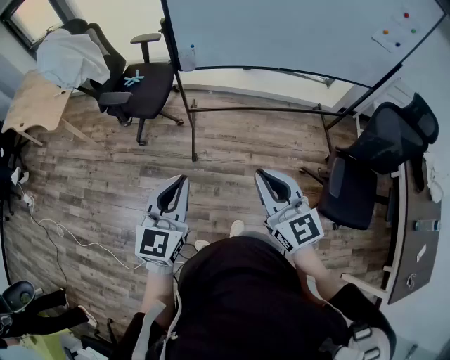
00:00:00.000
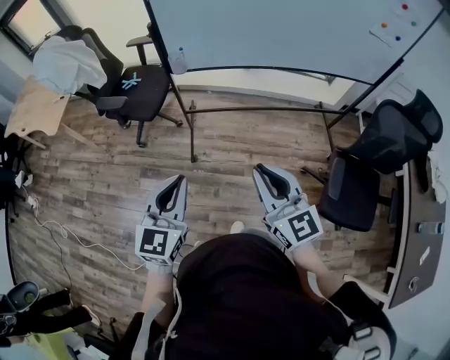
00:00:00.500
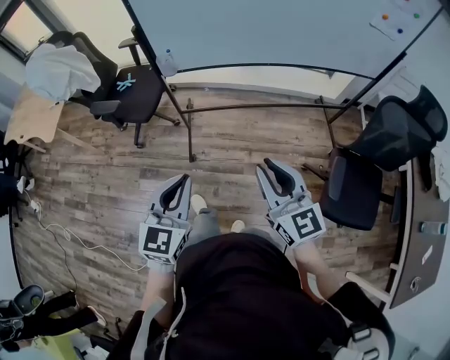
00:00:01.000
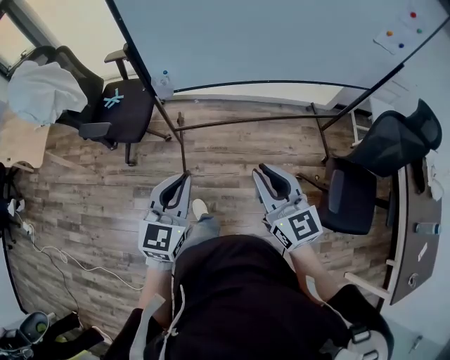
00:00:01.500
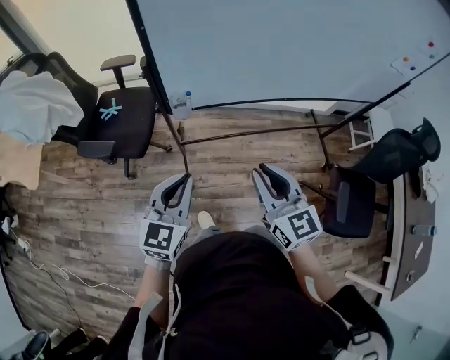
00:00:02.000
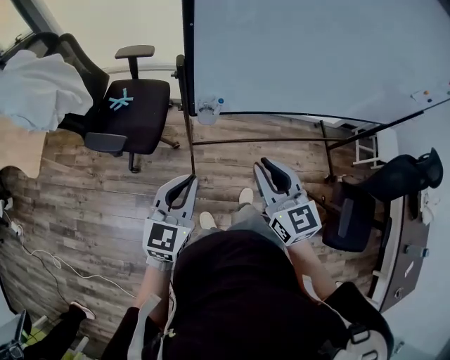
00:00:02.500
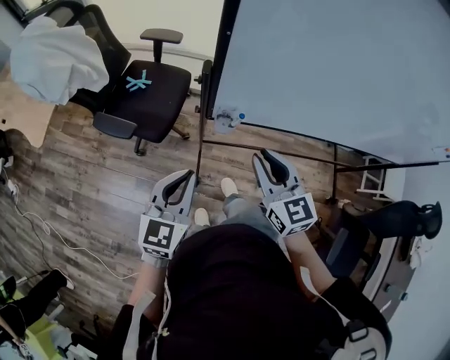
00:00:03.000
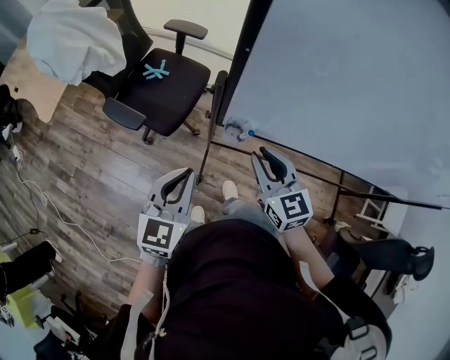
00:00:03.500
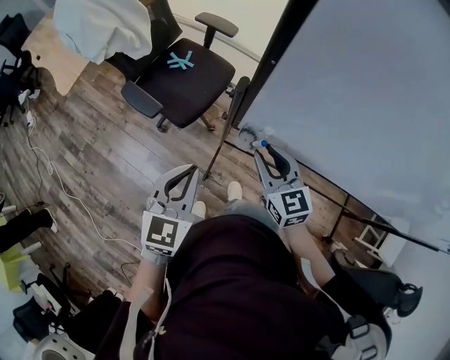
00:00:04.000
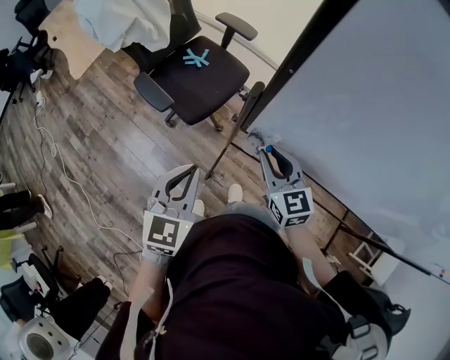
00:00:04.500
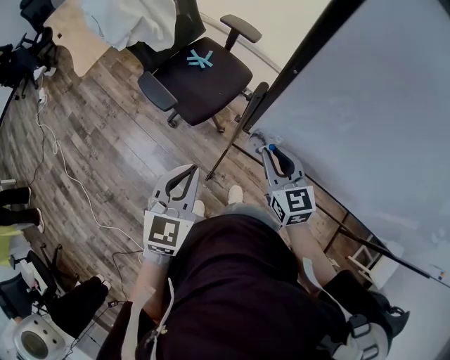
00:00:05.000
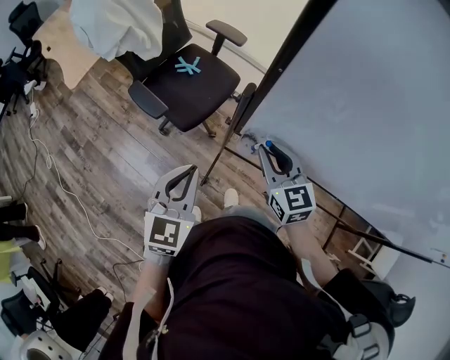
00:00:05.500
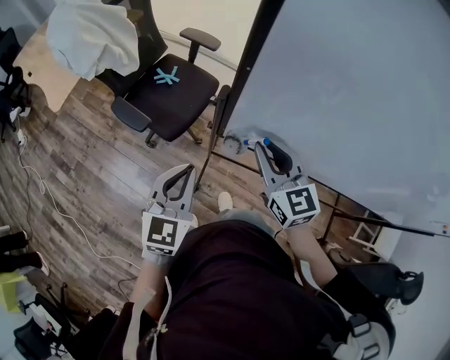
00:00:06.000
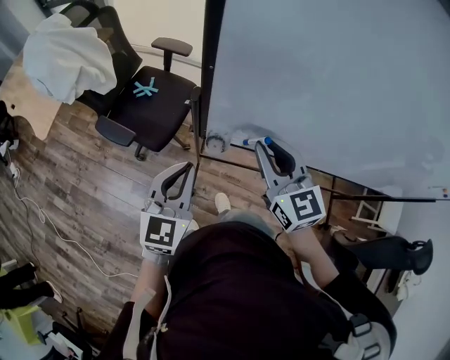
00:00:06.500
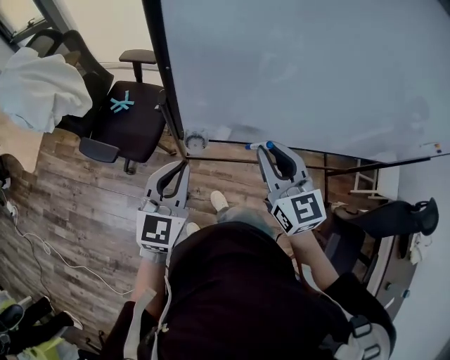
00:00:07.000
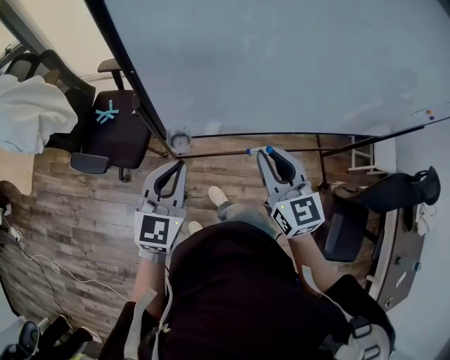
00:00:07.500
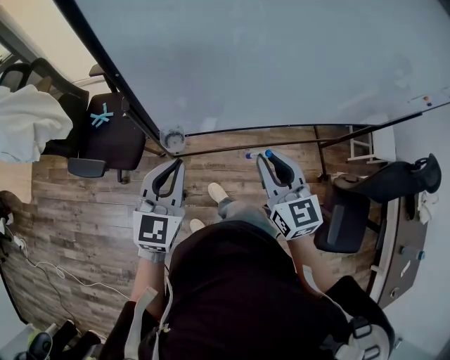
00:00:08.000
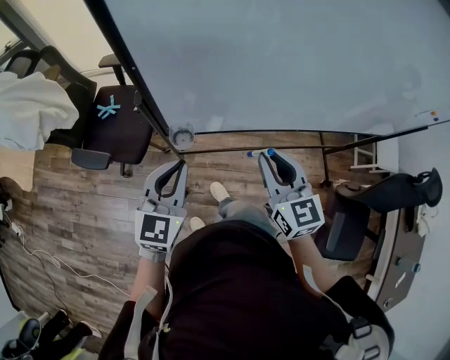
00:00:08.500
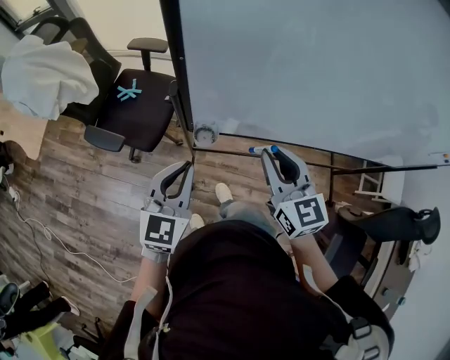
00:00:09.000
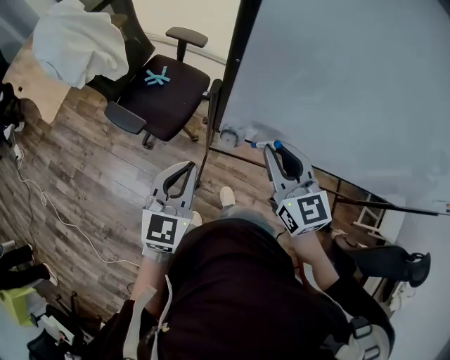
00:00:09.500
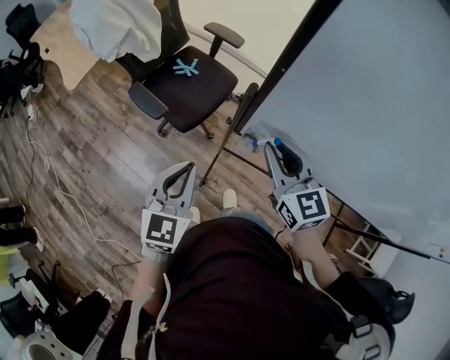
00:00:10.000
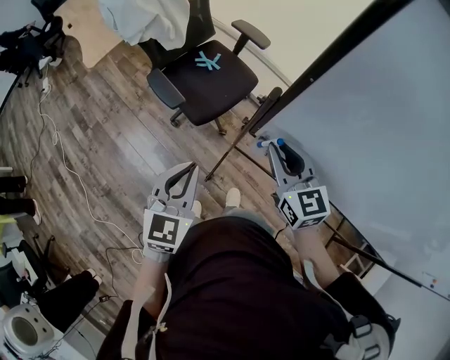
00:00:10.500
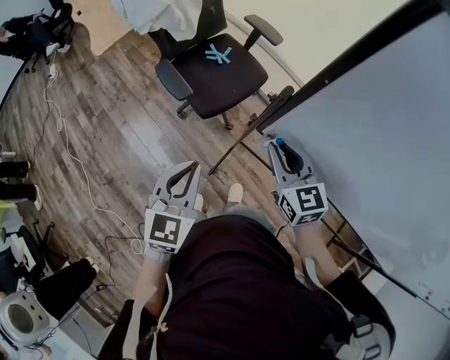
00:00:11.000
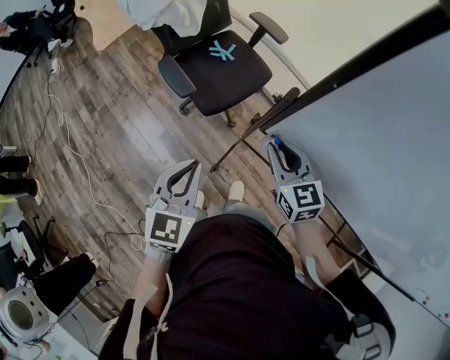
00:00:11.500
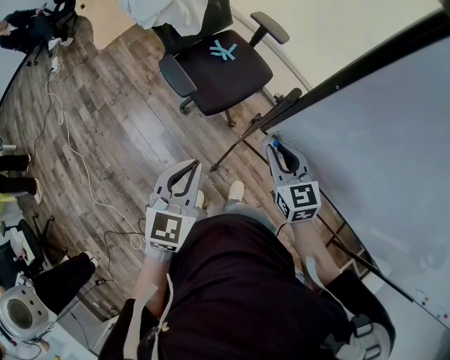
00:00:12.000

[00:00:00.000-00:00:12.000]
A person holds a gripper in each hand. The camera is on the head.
00:00:00.000 to 00:00:02.000: Both grippers travel together forward, about 30 cm.
00:00:02.000 to 00:00:04.000: The left gripper ends up roughly 15 cm from where it was, and turns by about 30 degrees. The right gripper ends up roughly 30 cm from where it was, and changes its angle by roughly 30 degrees.
00:00:04.000 to 00:00:06.000: The right gripper travels upward by approximately 10 cm.
00:00:06.000 to 00:00:08.000: The right gripper shifts by approximately 20 cm, and rotates approximately 30 degrees; the left gripper ends up some 10 cm from where it was, and swivels about 30 degrees.
00:00:08.000 to 00:00:10.000: The right gripper ends up roughly 20 cm from where it was, and rotates some 40 degrees; the left gripper ends up some 15 cm from where it was, and turns by some 30 degrees.
00:00:10.000 to 00:00:12.000: The right gripper goes some 10 cm downward.

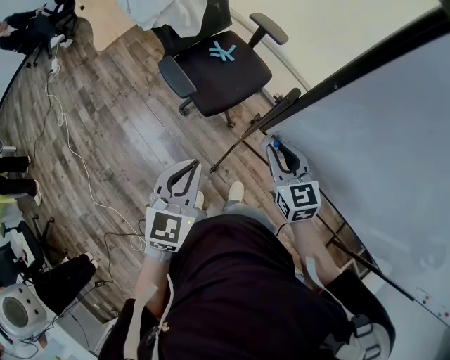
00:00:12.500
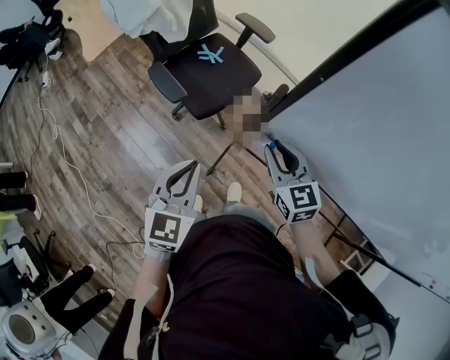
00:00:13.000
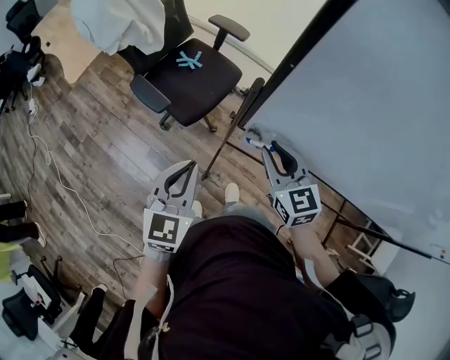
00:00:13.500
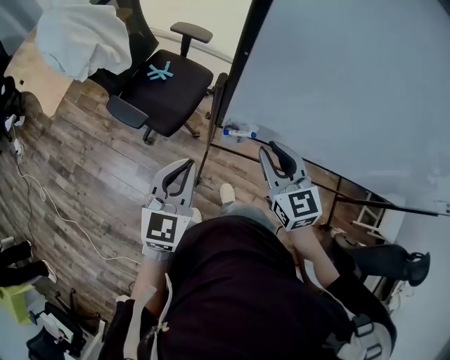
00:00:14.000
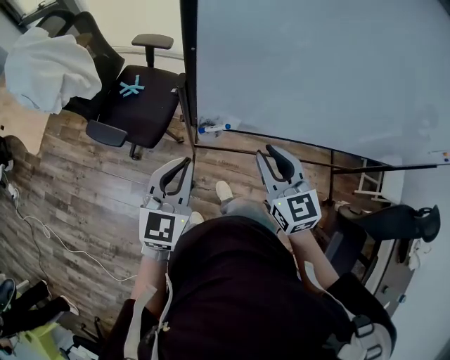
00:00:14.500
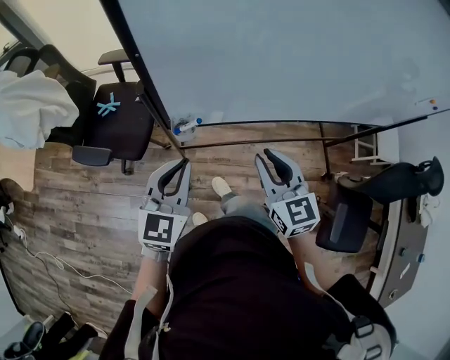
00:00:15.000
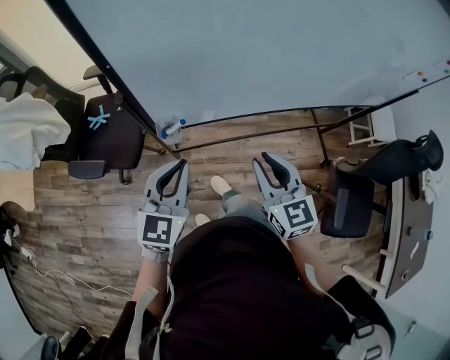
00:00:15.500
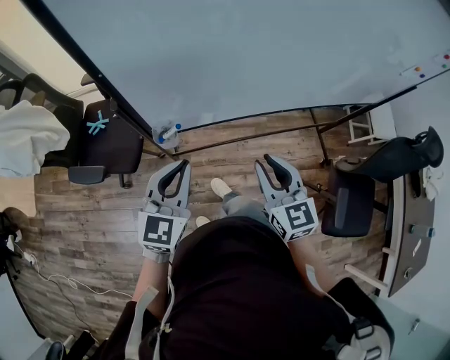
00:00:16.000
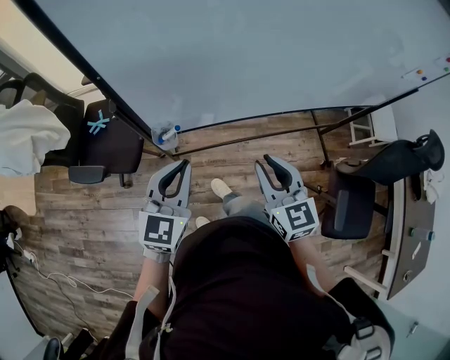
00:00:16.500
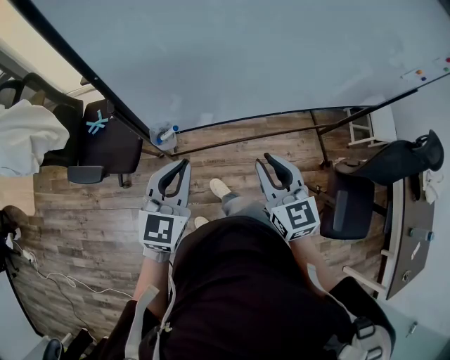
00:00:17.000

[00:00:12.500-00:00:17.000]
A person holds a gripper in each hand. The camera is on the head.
00:00:12.500 to 00:00:14.500: The right gripper changes place by approximately 15 cm, and turns by approximately 30 degrees; the left gripper moves roughly 10 cm, and rotates some 30 degrees.
00:00:14.500 to 00:00:17.000: The right gripper goes about 15 cm to the right and backward; the left gripper shifts roughly 10 cm to the right.

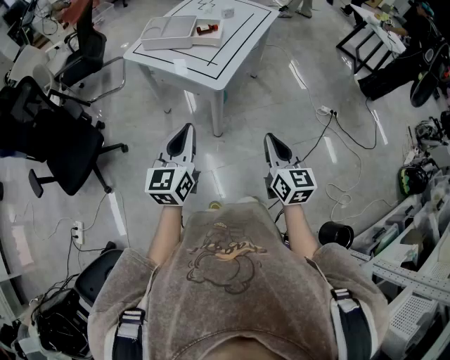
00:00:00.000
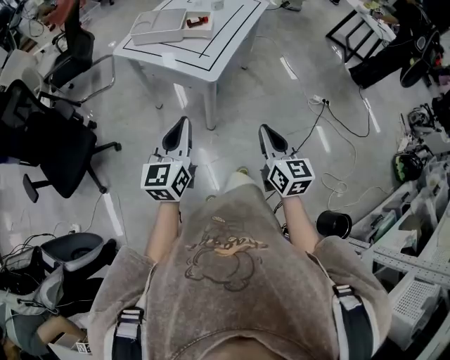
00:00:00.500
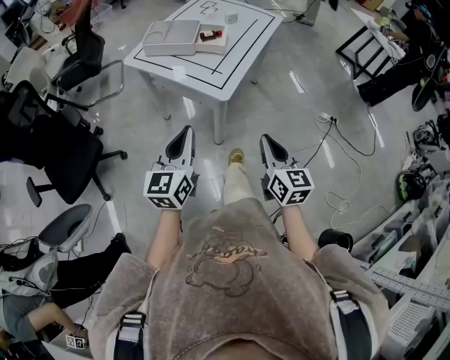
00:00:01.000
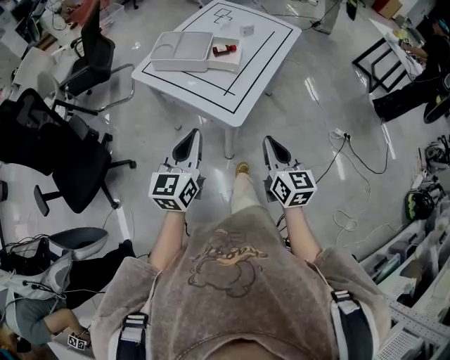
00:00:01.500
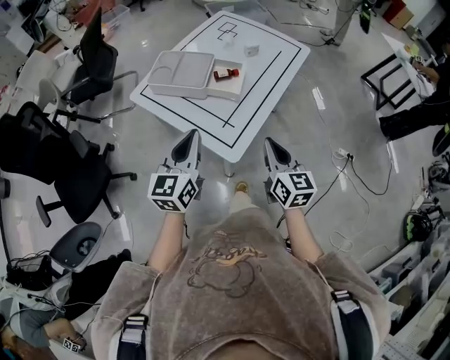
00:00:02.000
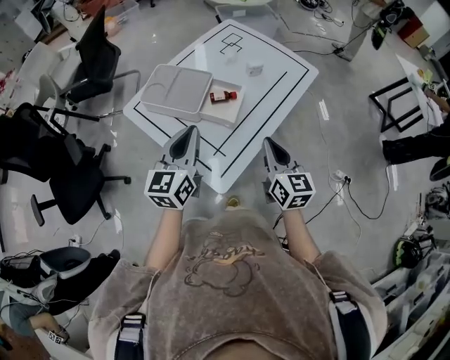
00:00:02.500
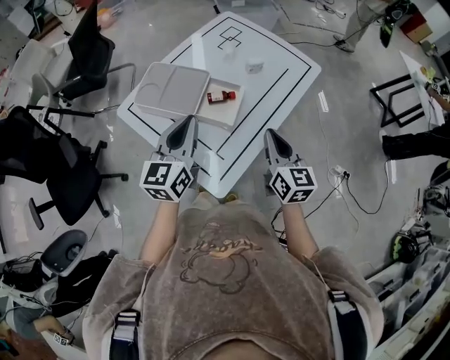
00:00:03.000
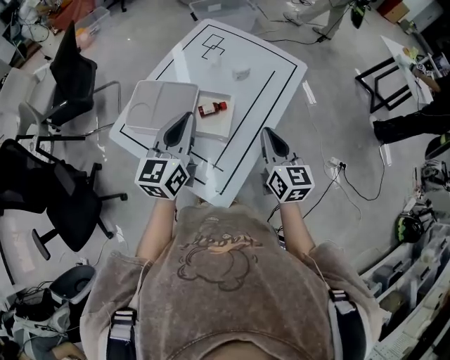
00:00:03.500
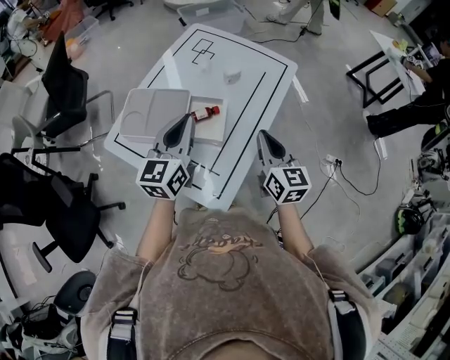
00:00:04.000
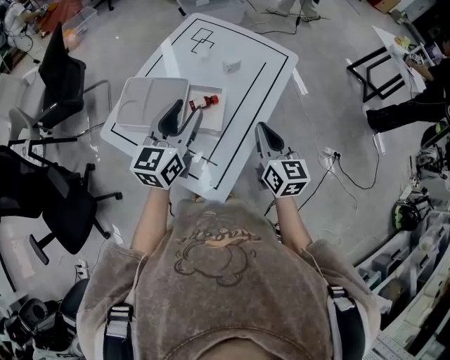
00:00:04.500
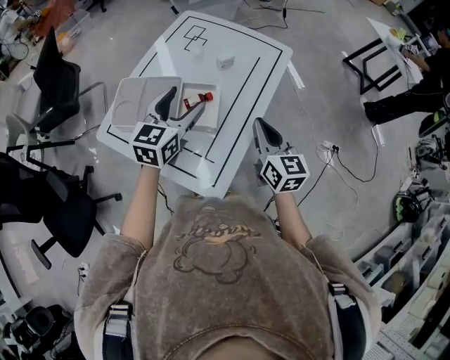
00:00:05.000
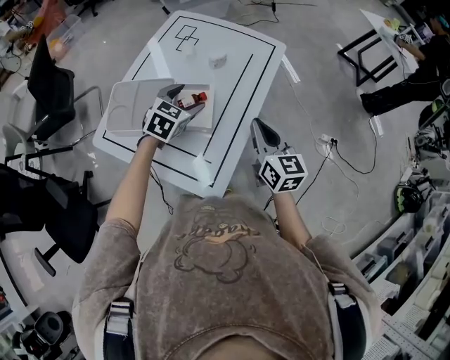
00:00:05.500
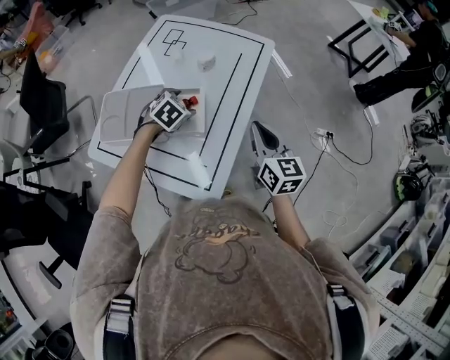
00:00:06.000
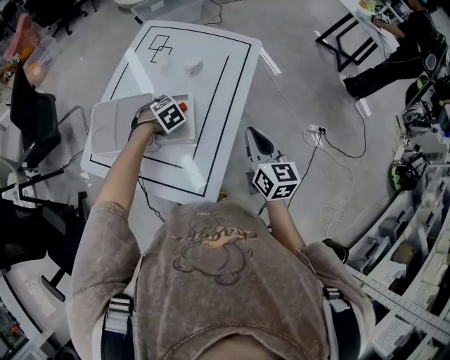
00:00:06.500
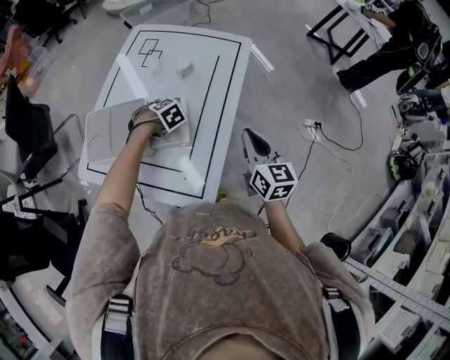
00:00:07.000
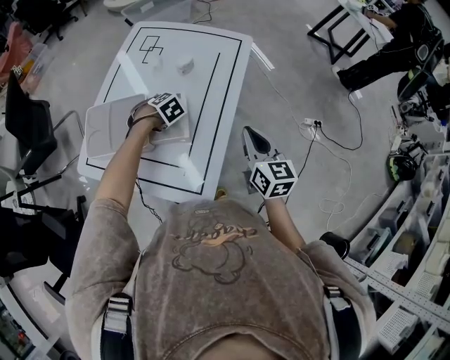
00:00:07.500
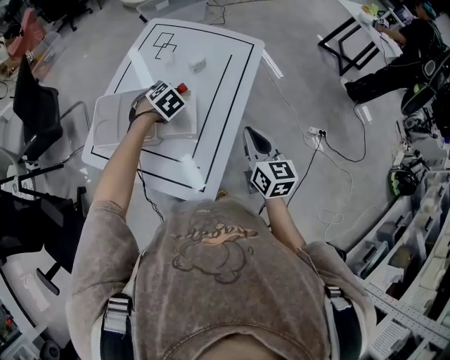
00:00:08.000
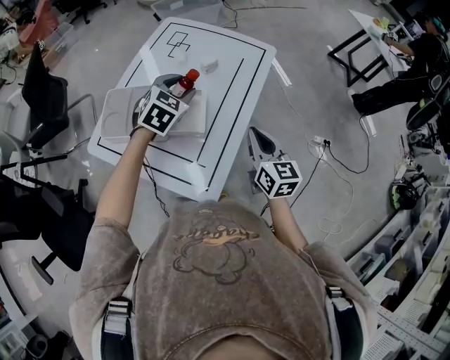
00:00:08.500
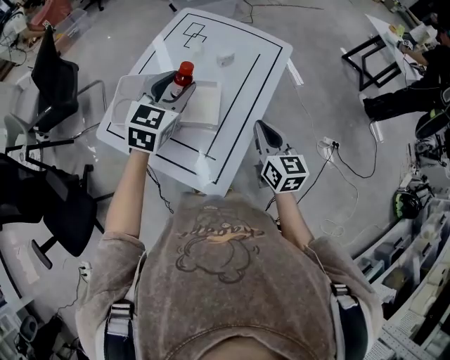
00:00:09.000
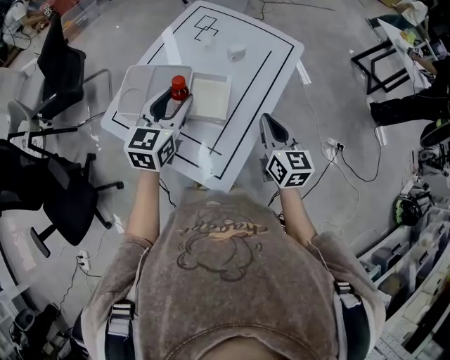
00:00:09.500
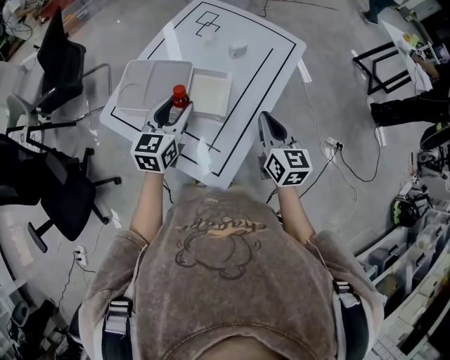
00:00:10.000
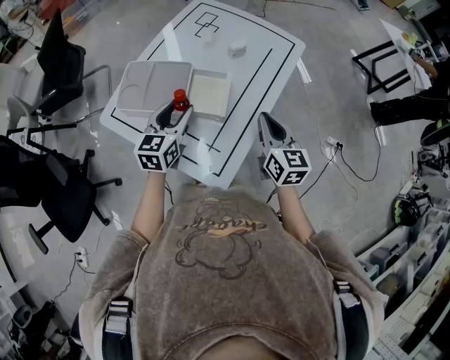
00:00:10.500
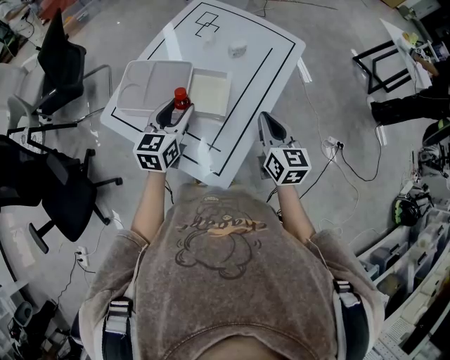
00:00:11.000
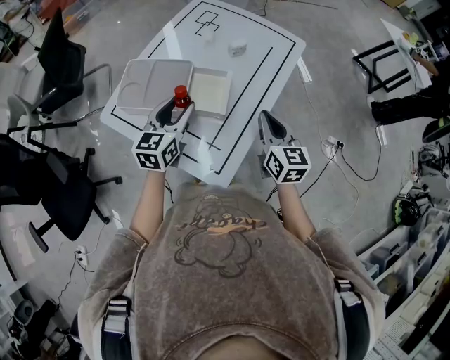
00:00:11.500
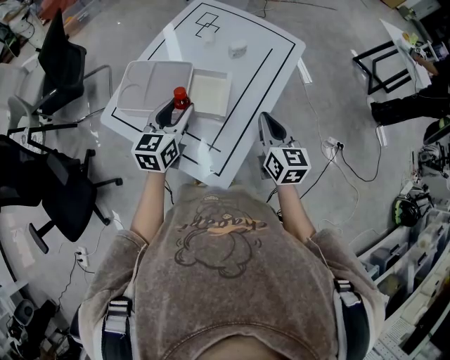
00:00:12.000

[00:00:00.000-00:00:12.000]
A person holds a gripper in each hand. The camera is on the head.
00:00:00.000 to 00:00:02.000: Both grippers move forward, some 30 cm.
00:00:02.000 to 00:00:04.000: Both grippers travel together forward, about 20 cm.
00:00:04.000 to 00:00:06.000: The left gripper shifts some 20 cm downward and forward, points its fingers some 50 degrees further downward, and opens its fingers.
00:00:06.000 to 00:00:08.000: The left gripper reaches approximately 5 cm downward, then returns, and closes up.
00:00:08.000 to 00:00:10.000: The left gripper travels backward, upward and to the left by some 20 cm, and tilts its fingers some 50 degrees upward, while the right gripper shifts by about 5 cm.
00:00:10.000 to 00:00:12.000: The grippers stay close to where they were, moving slightly.
